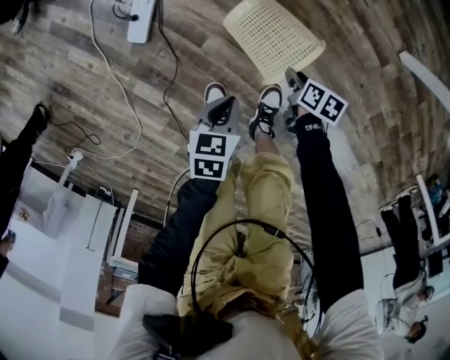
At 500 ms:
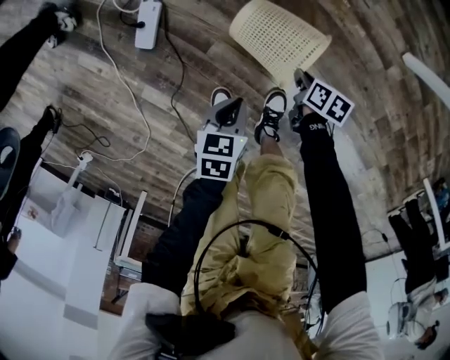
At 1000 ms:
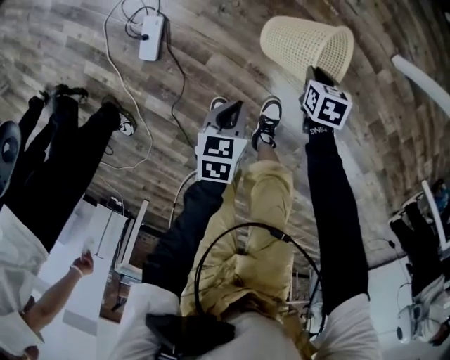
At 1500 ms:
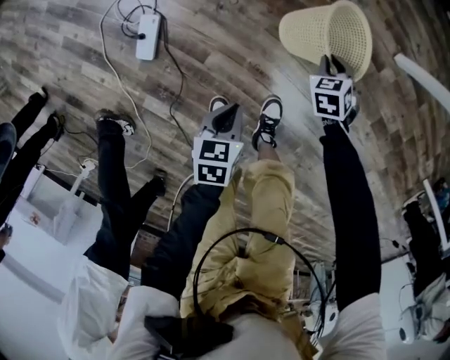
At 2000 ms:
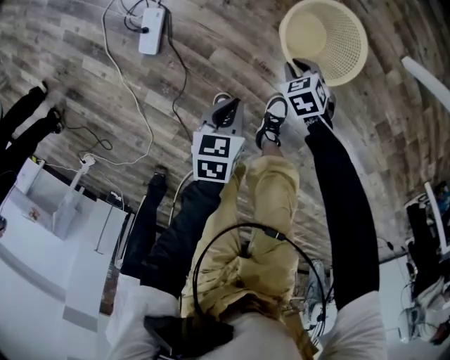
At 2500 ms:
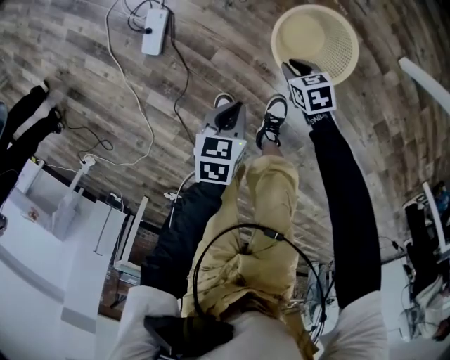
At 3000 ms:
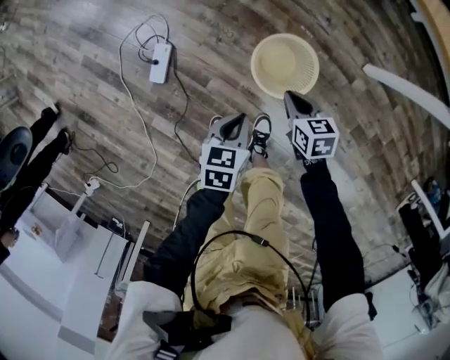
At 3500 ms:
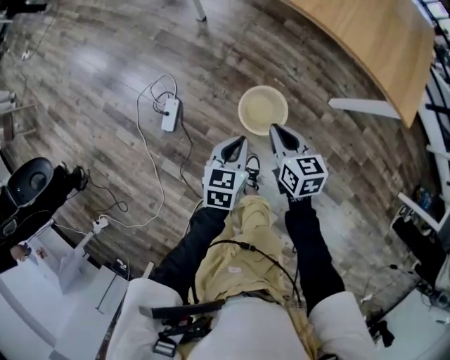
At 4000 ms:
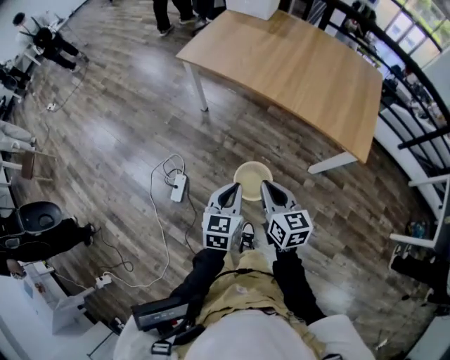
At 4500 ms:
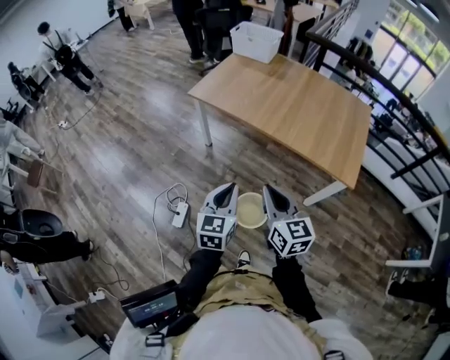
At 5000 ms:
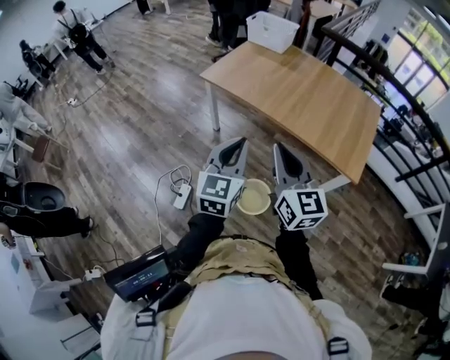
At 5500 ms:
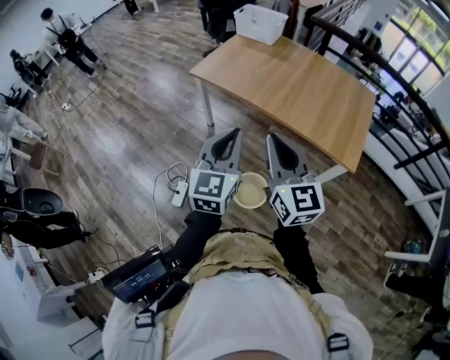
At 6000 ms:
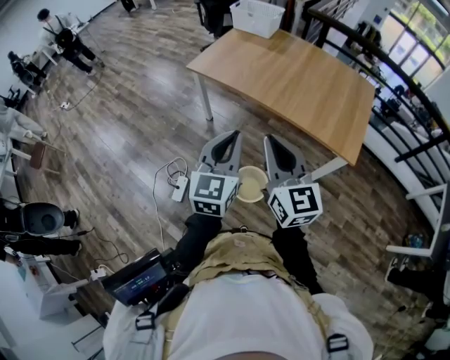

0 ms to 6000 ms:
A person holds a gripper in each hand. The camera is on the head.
0 ms to 2000 ms: The right gripper goes upward and returns, about 10 cm each way, twists approximately 60 degrees counterclockwise, seen from behind, and closes its fingers.
2000 ms to 4000 ms: Both grippers move upward, some 60 cm. The left gripper angles its fingers upward, by roughly 40 degrees. Meanwhile the right gripper angles its fingers upward, by about 50 degrees.
4000 ms to 6000 ms: Both grippers move upward, some 25 cm. The left gripper turns by roughly 30 degrees, while the right gripper changes its angle by approximately 30 degrees.

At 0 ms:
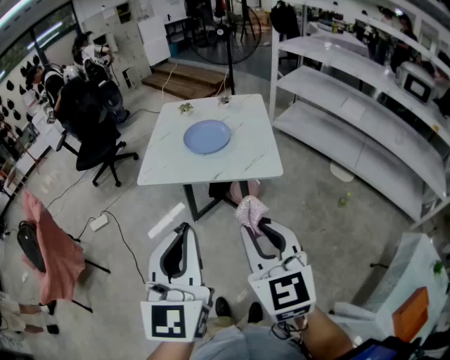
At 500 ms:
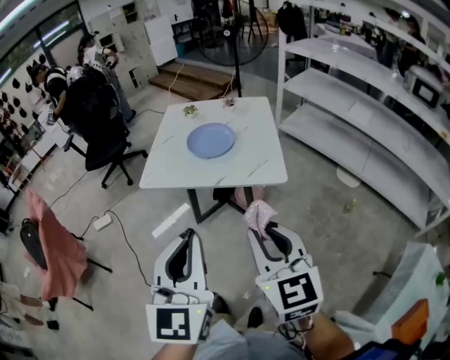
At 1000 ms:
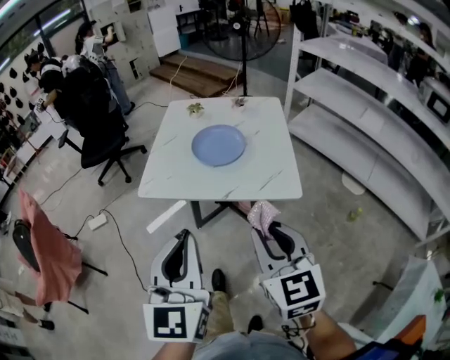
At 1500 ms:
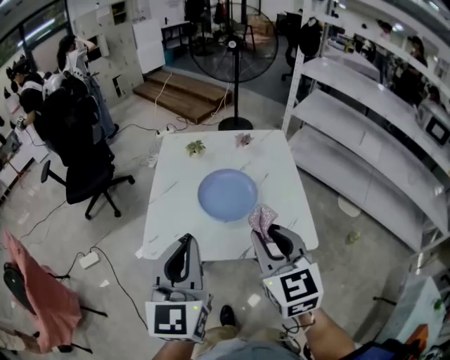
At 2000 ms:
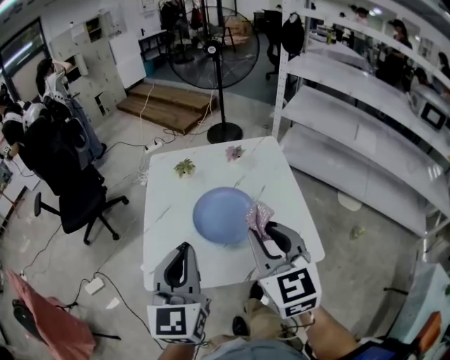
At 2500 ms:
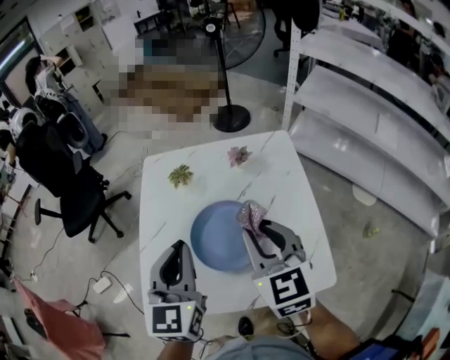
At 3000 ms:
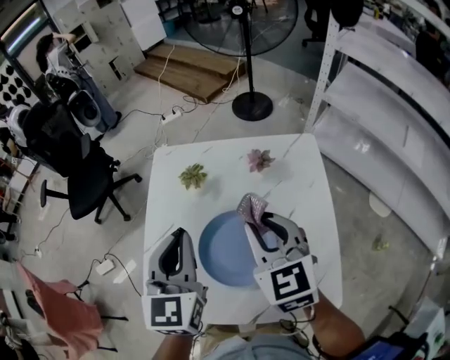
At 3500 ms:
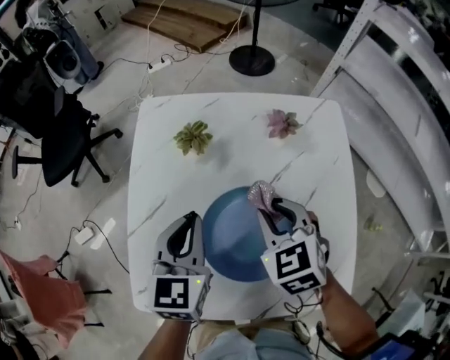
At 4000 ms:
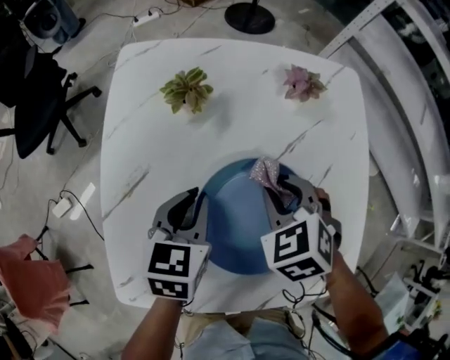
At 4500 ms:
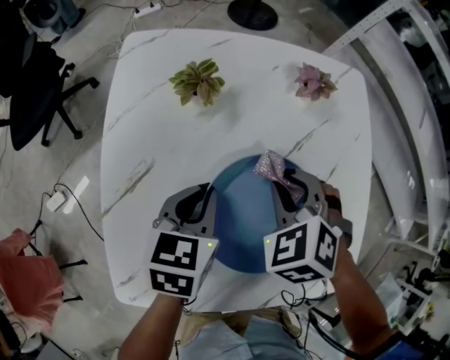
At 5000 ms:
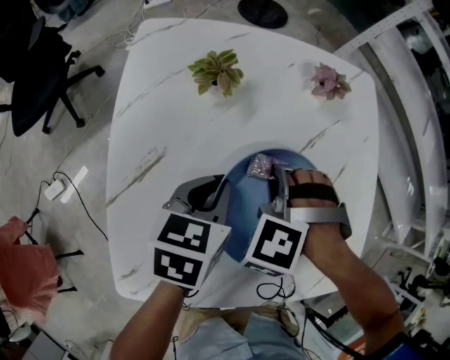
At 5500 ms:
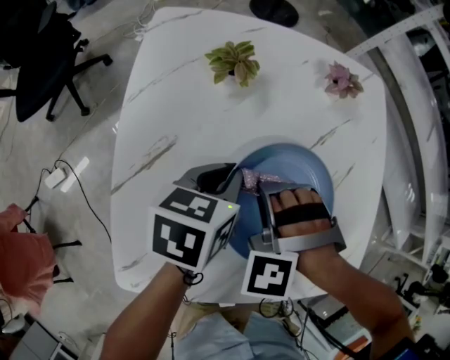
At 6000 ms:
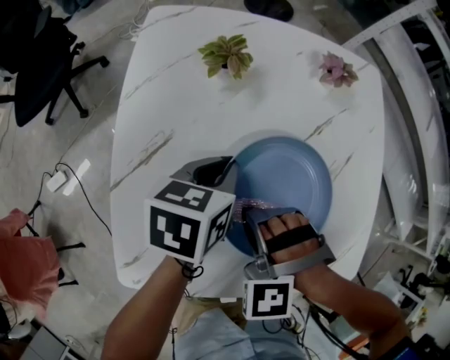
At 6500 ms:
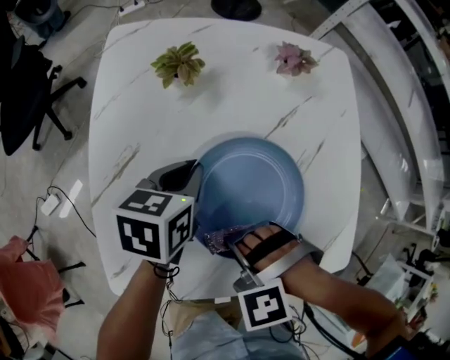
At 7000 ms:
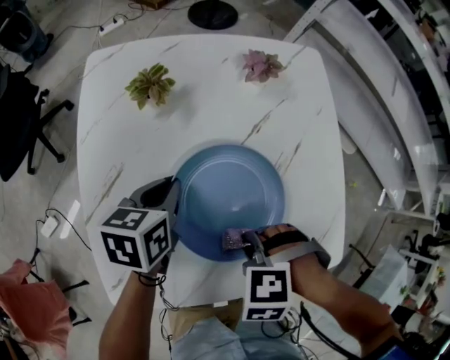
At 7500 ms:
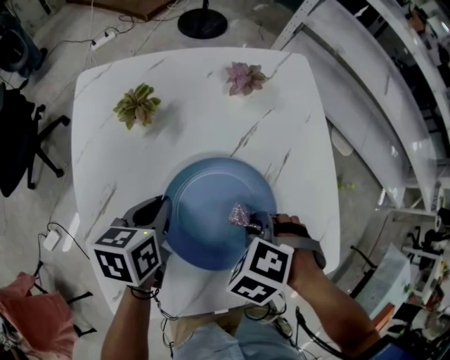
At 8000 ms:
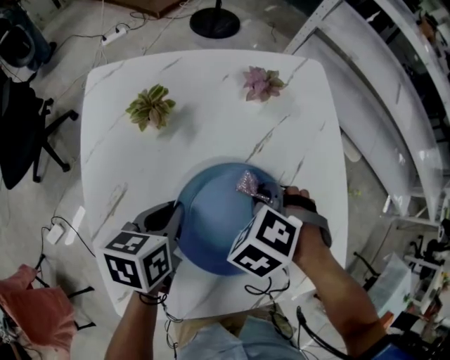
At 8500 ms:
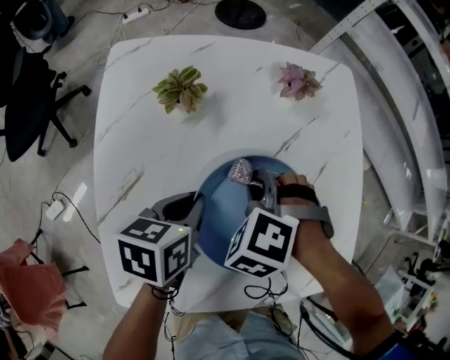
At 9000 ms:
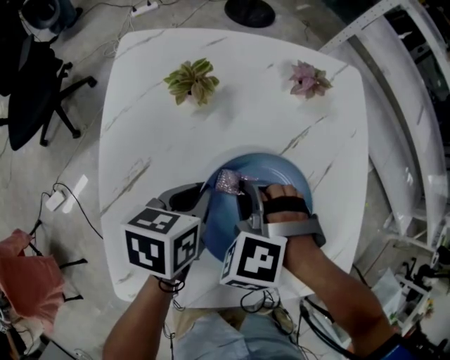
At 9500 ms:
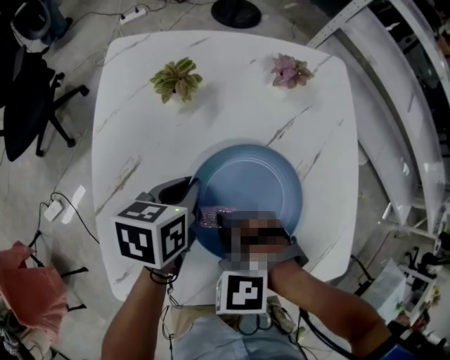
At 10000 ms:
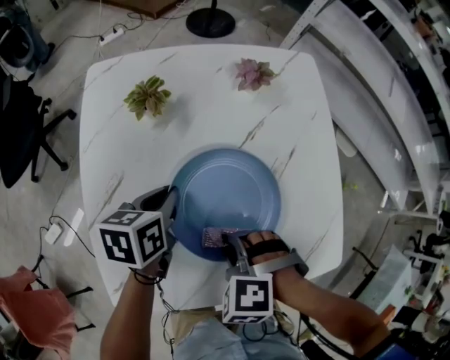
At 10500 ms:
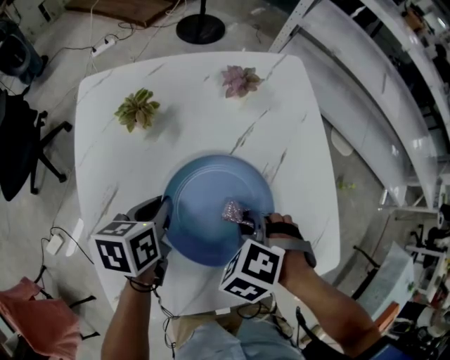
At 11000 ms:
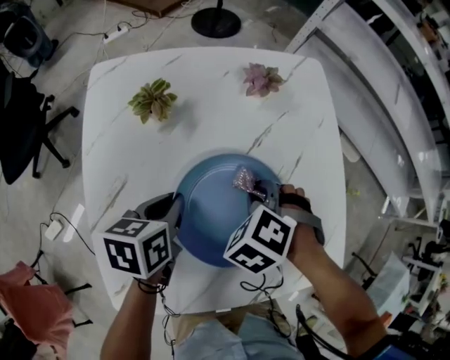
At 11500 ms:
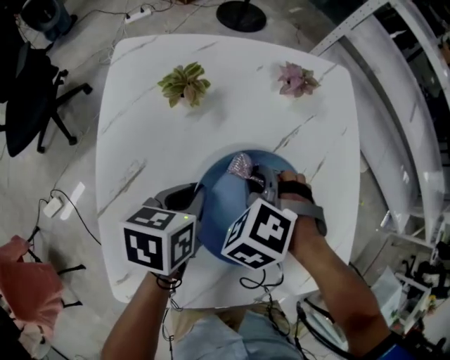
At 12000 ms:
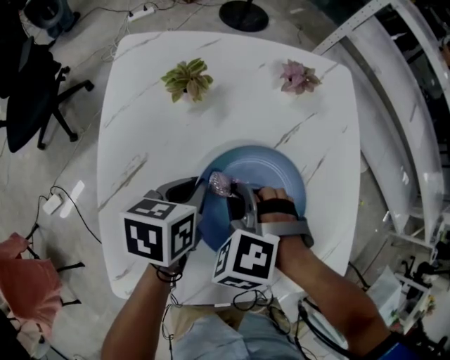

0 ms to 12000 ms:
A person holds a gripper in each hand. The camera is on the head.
0 ms to 2000 ms: The pair of grippers is taken forward, about 40 cm.
2000 ms to 4000 ms: Both grippers travel together downward and forward, some 40 cm. The left gripper angles its fingers downward, by roughly 40 degrees, while the right gripper points its fingers about 50 degrees further downward.
4000 ms to 6000 ms: The right gripper travels backward and to the left by some 15 cm, and rotates around the line of its fingers by some 50 degrees, counterclockwise from behind.
6000 ms to 8000 ms: The right gripper moves about 15 cm, and rolls clockwise, seen from behind, by roughly 40 degrees.
8000 ms to 10000 ms: The right gripper ends up approximately 15 cm from where it was, and changes its angle by about 20 degrees.
10000 ms to 12000 ms: The right gripper moves roughly 10 cm.

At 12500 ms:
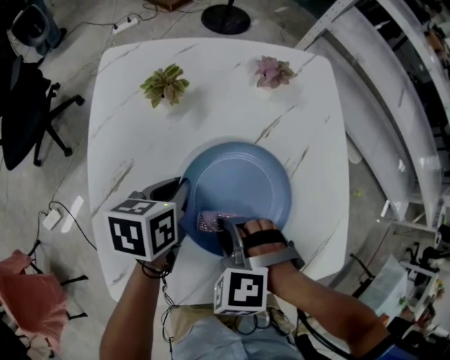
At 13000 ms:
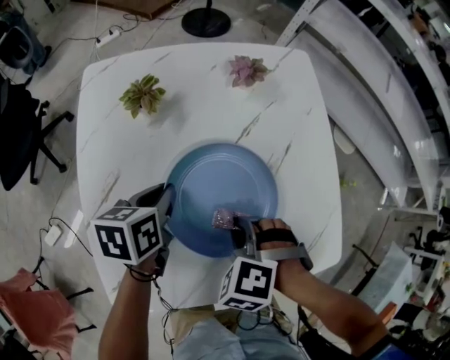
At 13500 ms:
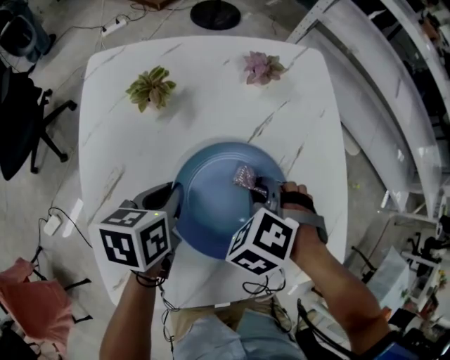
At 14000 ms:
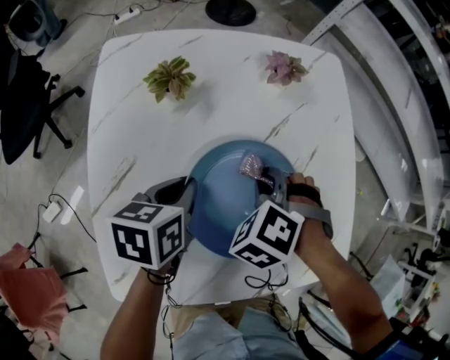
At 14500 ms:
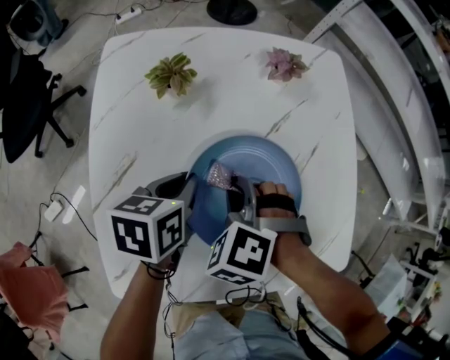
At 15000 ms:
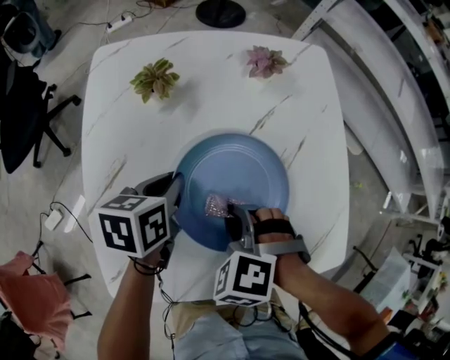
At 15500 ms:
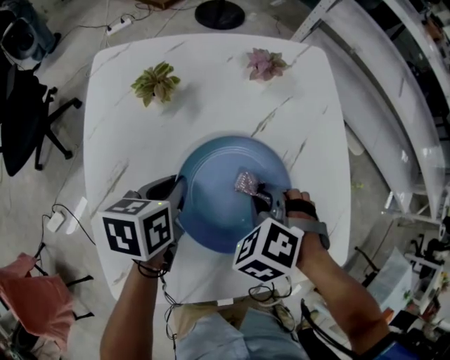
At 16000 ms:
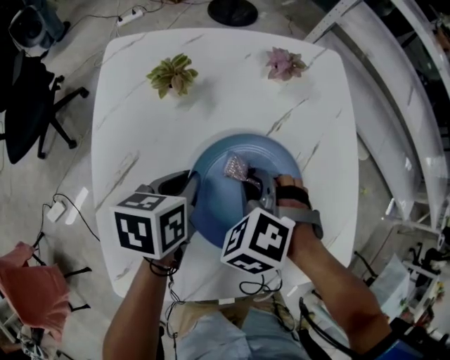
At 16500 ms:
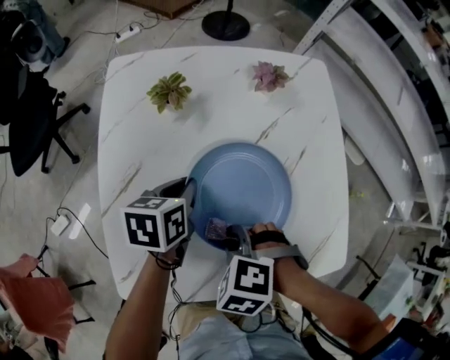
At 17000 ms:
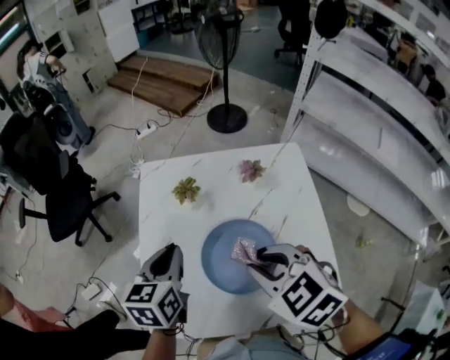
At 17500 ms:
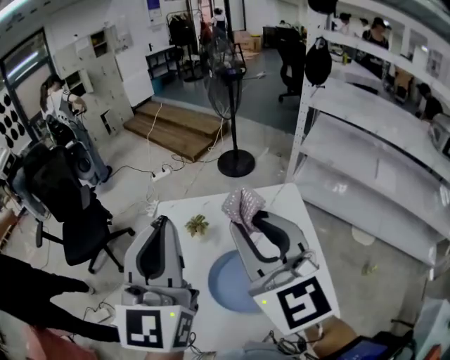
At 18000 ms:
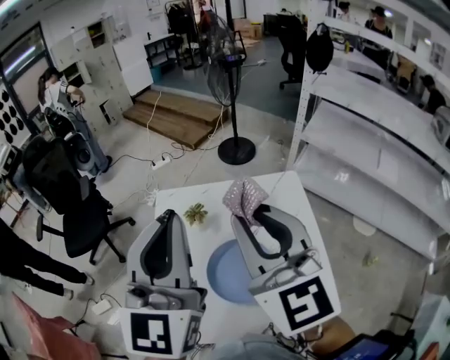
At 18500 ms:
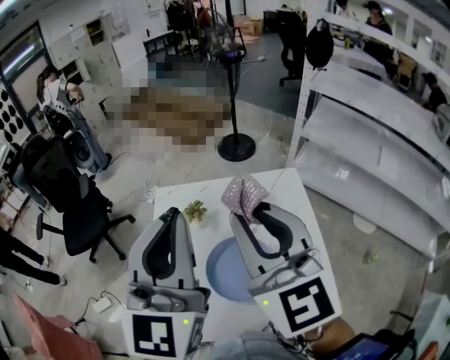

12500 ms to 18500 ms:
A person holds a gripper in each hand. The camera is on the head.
12500 ms to 14500 ms: The right gripper is displaced forward by roughly 10 cm.
14500 ms to 16500 ms: The right gripper moves some 10 cm.
16500 ms to 18500 ms: The grippers both shift upward by approximately 50 cm. The right gripper points its fingers some 80 degrees further upward. Meanwhile the left gripper tilts its fingers some 60 degrees upward.

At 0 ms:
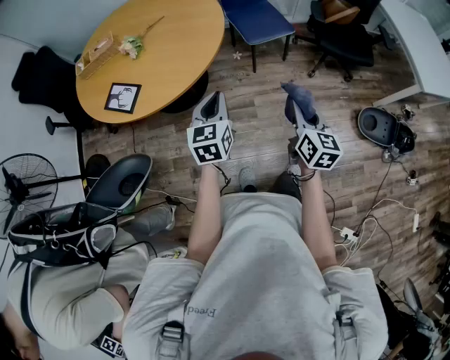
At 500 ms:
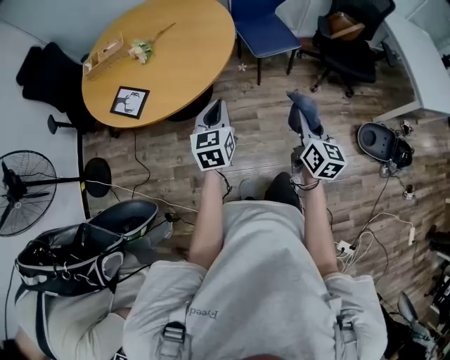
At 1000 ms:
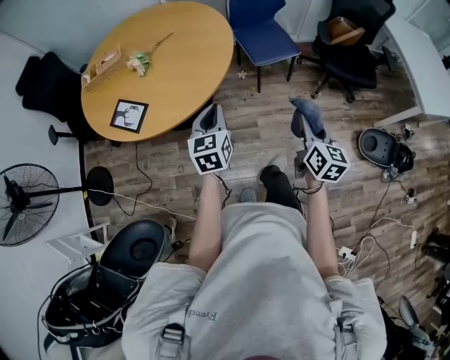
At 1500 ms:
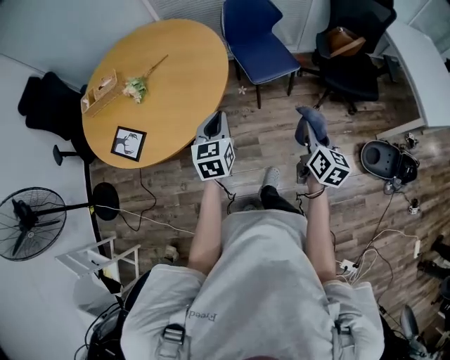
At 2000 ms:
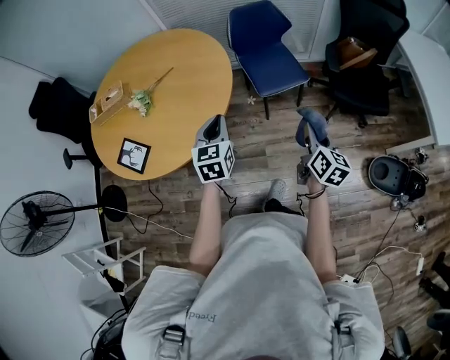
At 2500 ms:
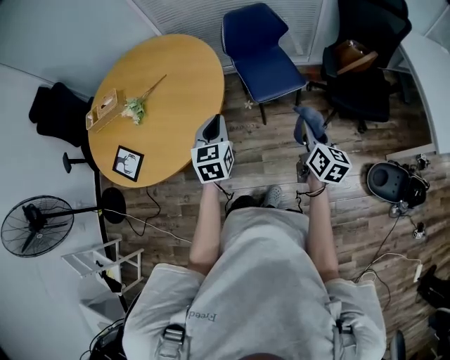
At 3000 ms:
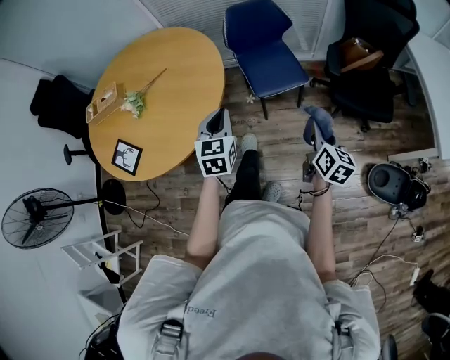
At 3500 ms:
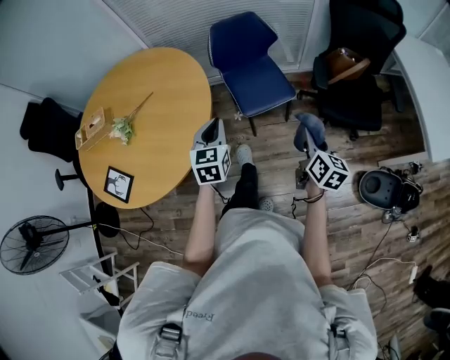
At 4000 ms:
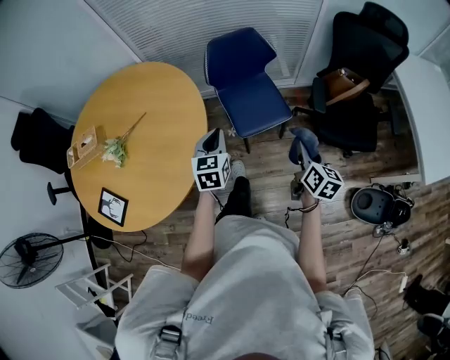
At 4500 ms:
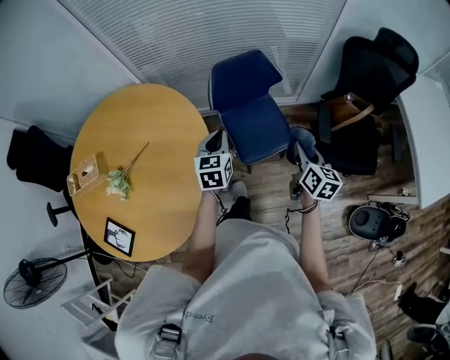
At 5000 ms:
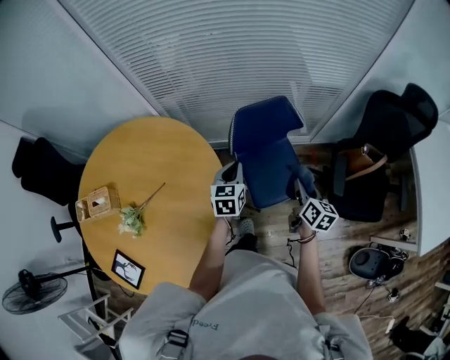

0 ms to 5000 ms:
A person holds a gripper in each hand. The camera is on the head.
0 ms to 2500 ms: The right gripper travels forward and to the right by some 30 cm; the left gripper shifts some 25 cm forward.
2500 ms to 5000 ms: The pair of grippers is taken forward, roughly 40 cm.
